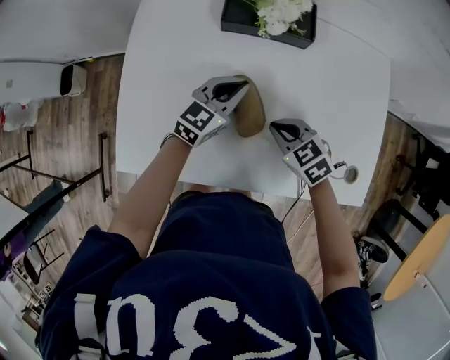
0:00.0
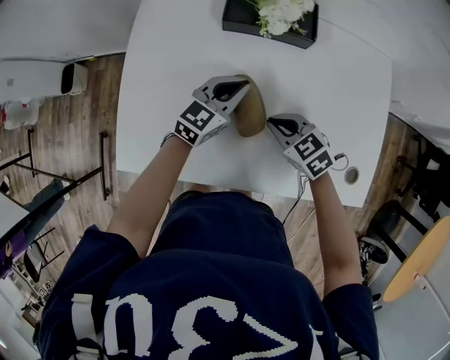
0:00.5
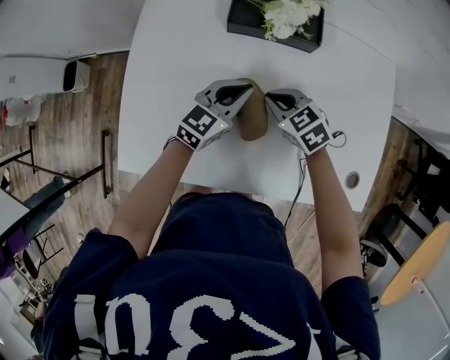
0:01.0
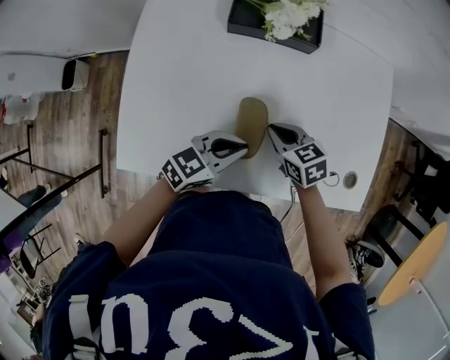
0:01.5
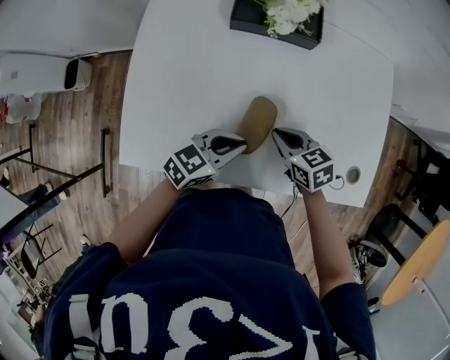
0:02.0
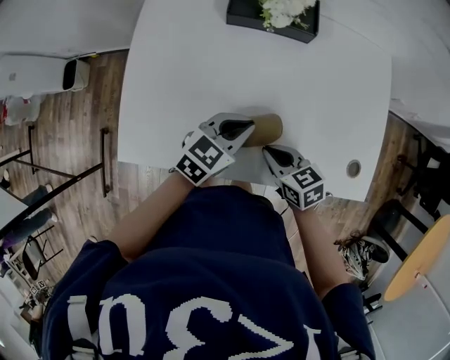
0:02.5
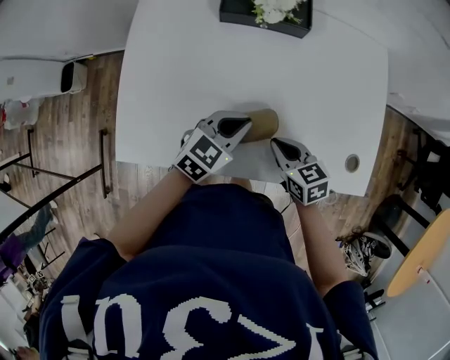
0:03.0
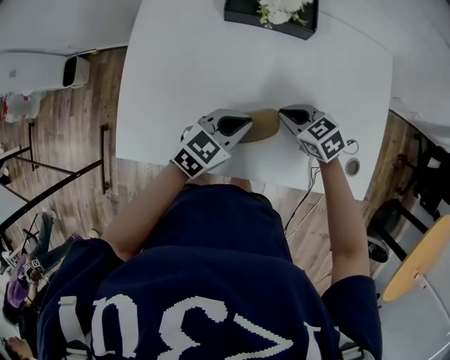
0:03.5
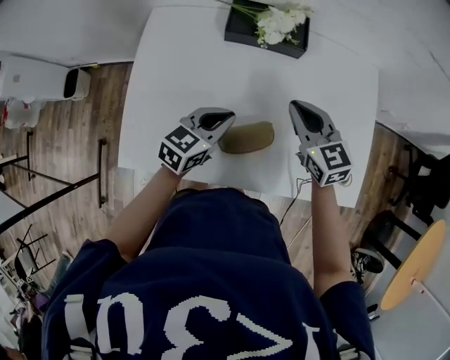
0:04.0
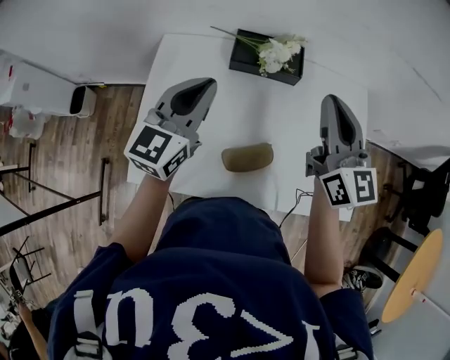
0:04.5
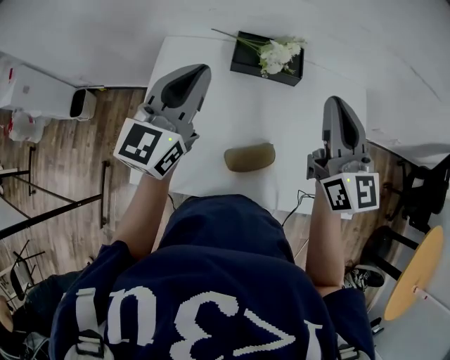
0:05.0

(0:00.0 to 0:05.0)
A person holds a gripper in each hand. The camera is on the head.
0:00.0 - 0:02.5: The grippers both shift backward by some 10 cm. The right gripper swivels about 30 degrees.
0:02.5 - 0:05.0: The right gripper heads upward and forward, covering approximately 35 cm, and angles its fingers upward, by approximately 50 degrees. Meanwhile the left gripper heads upward and to the left, covering roughly 30 cm, and tips its fingers upward by some 30 degrees.

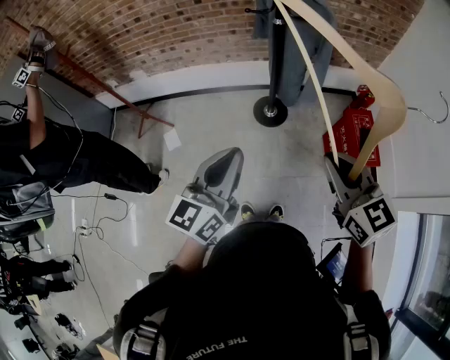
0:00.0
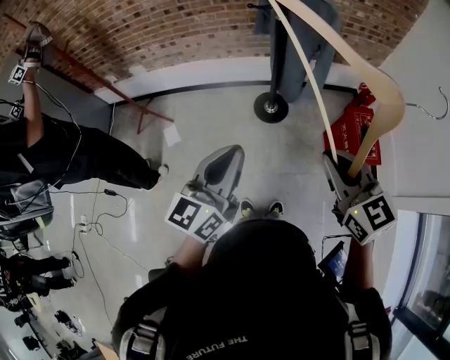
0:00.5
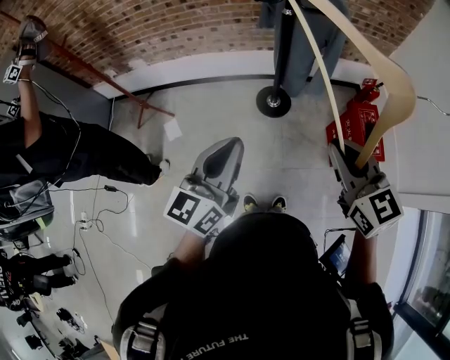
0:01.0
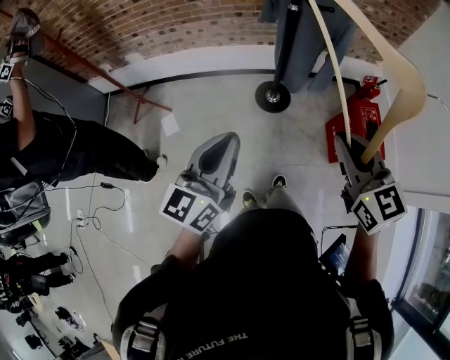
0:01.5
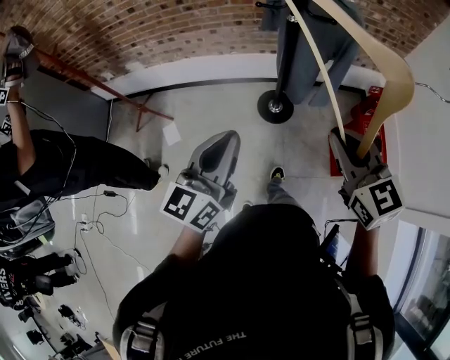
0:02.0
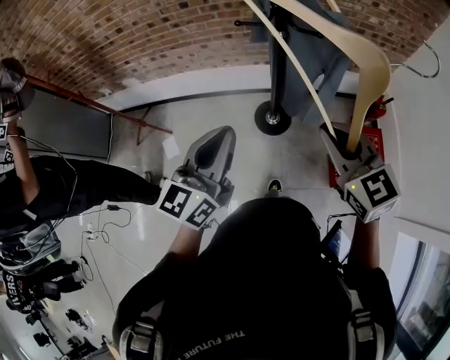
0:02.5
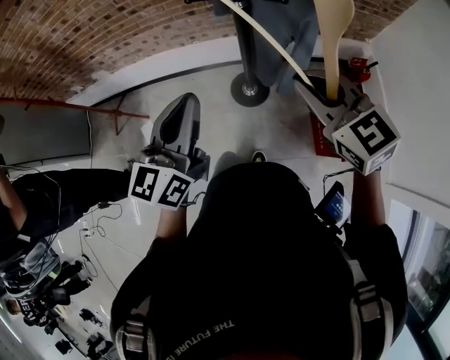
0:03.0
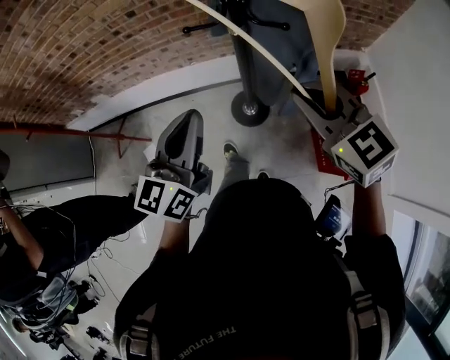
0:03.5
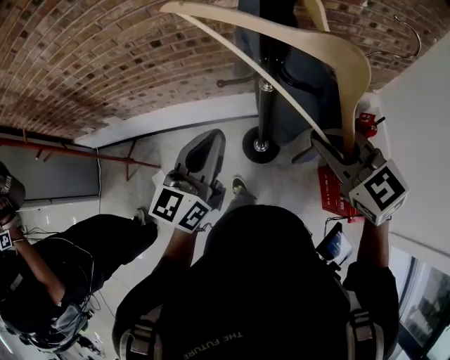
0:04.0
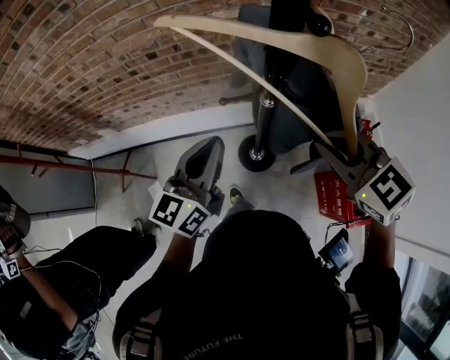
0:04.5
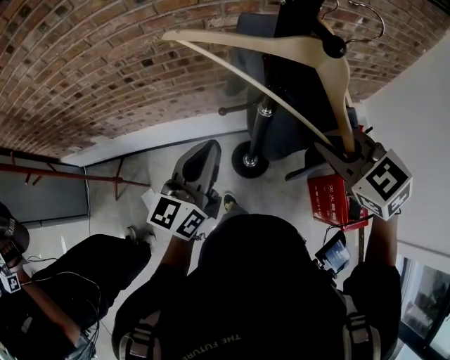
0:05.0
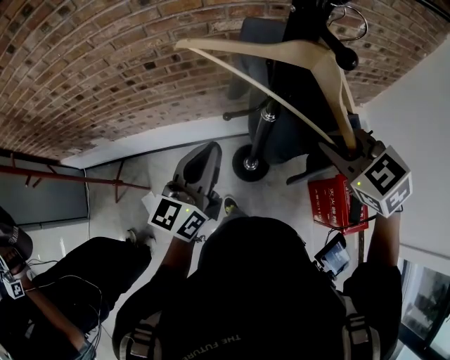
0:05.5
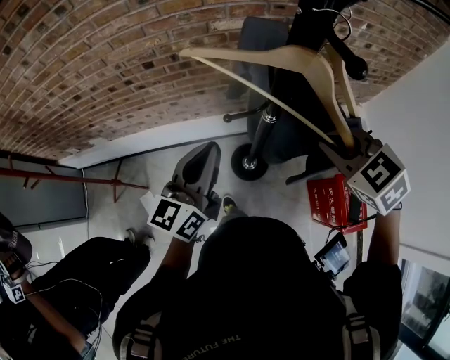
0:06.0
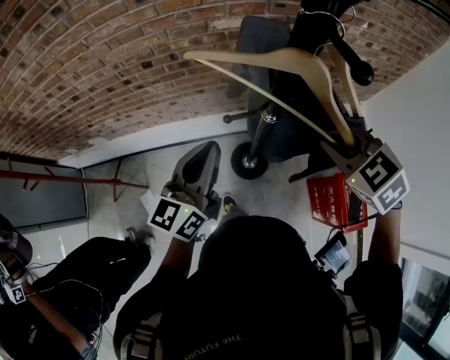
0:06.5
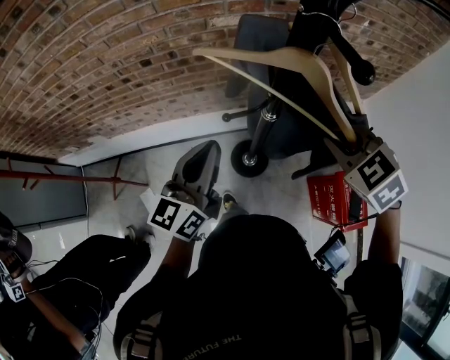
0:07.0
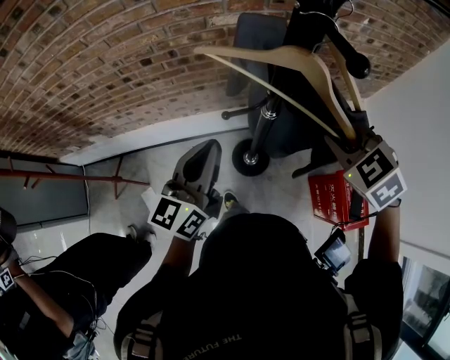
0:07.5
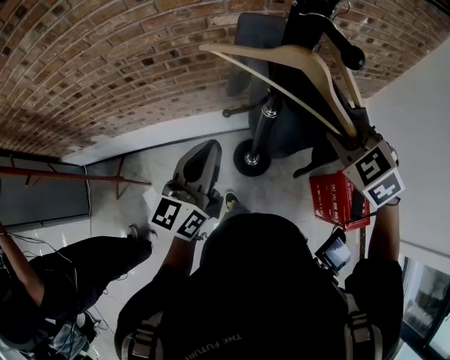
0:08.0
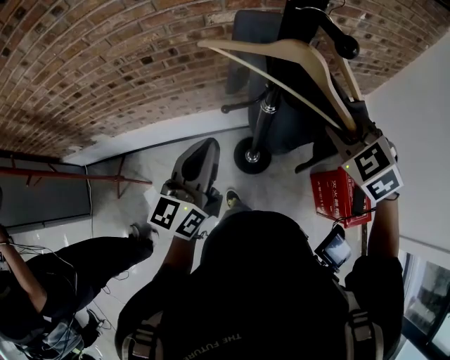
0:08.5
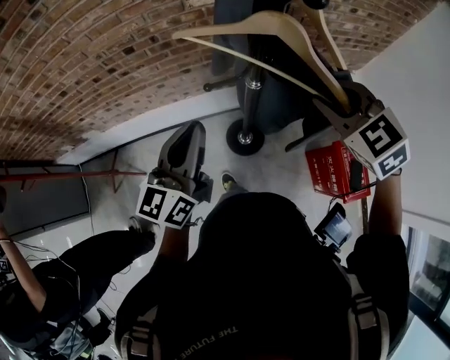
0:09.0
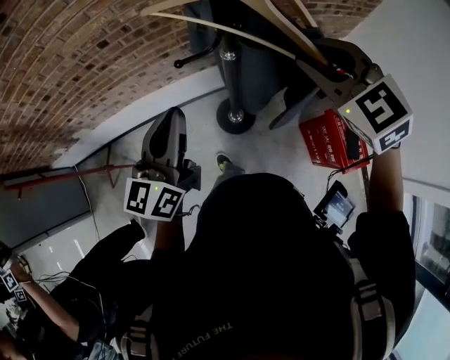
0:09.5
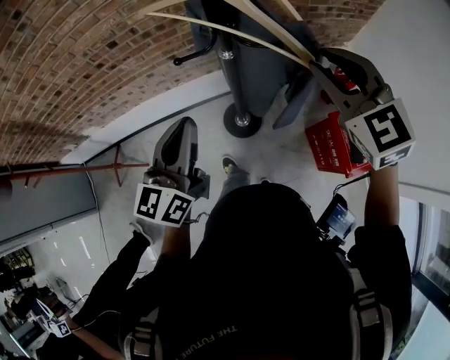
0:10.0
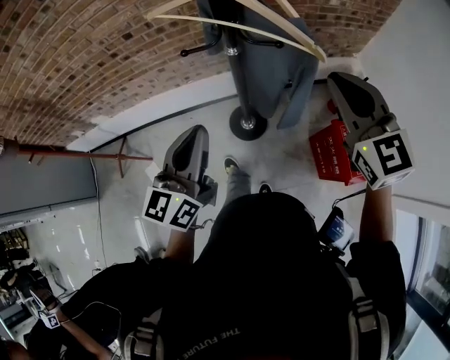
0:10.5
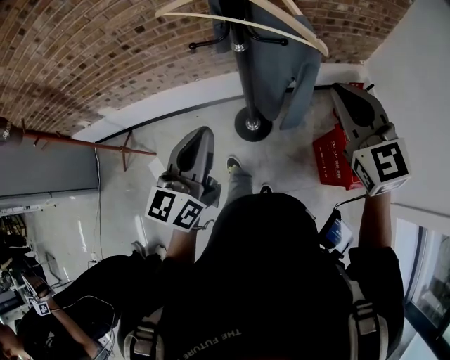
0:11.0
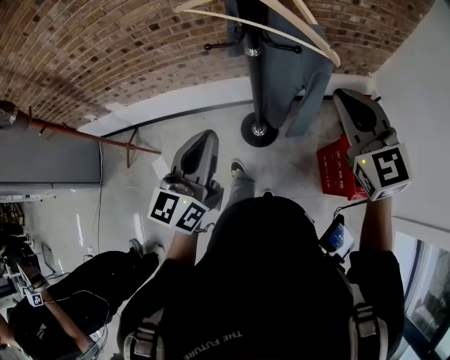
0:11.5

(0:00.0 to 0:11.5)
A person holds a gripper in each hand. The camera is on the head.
0:00.0 - 0:02.0: Both grippers move forward, approximately 15 cm.
0:02.0 - 0:04.0: Both grippers travel together forward, approximately 30 cm.
0:04.0 - 0:06.0: Both grippers travel together forward, approximately 10 cm. The right gripper changes its angle by approximately 20 degrees.
0:06.0 - 0:07.5: The grippers stay close to where they were, moving slightly.
0:07.5 - 0:09.5: The left gripper is displaced backward by about 5 cm. Meanwhile the right gripper heads upward, covering approximately 5 cm, and turns by about 20 degrees.
0:09.5 - 0:11.5: The right gripper moves backward and to the right, some 15 cm, turns by approximately 20 degrees, and closes its fingers, while the left gripper heads backward, covering roughly 15 cm.

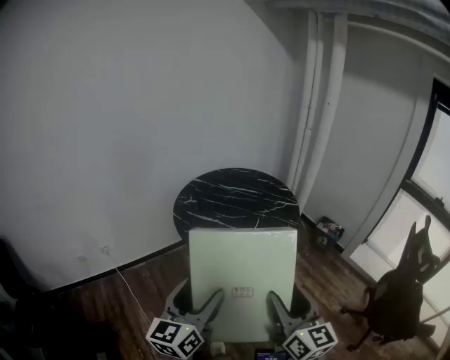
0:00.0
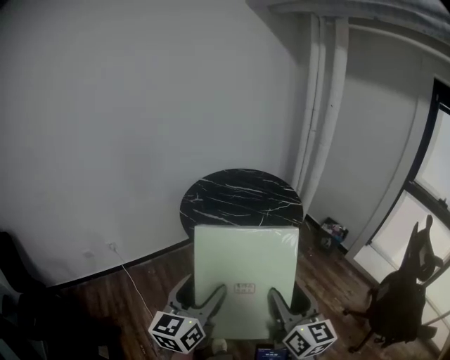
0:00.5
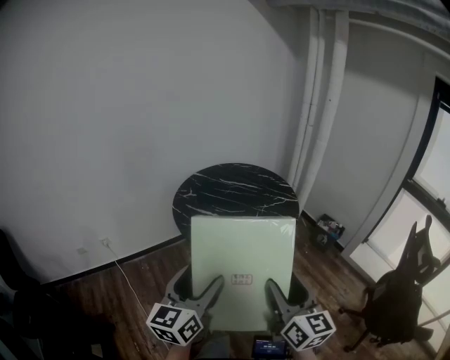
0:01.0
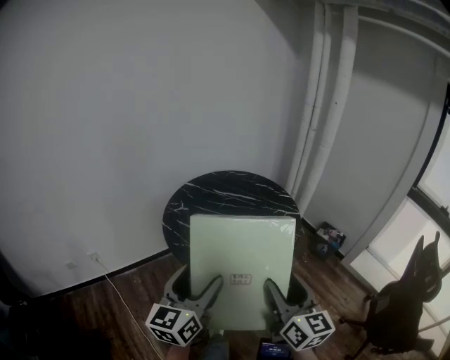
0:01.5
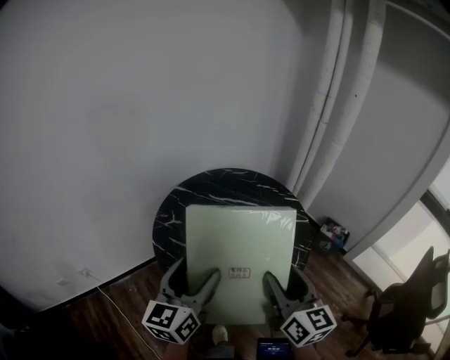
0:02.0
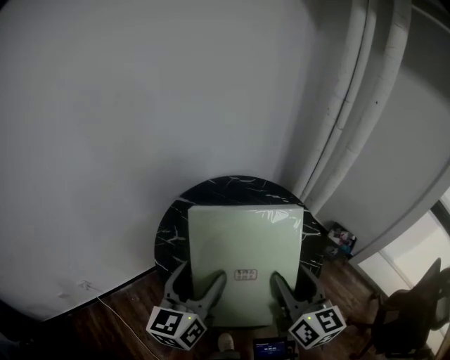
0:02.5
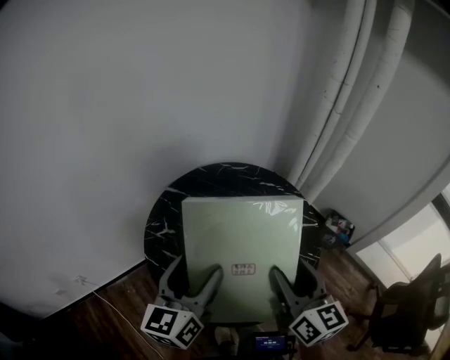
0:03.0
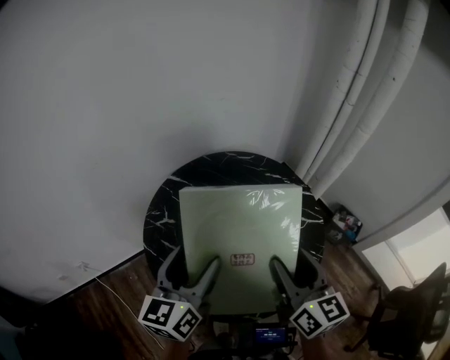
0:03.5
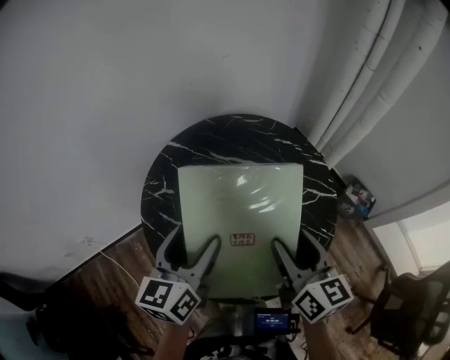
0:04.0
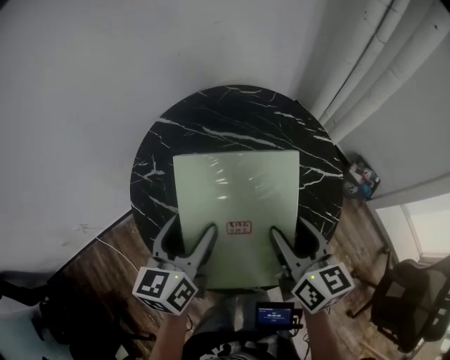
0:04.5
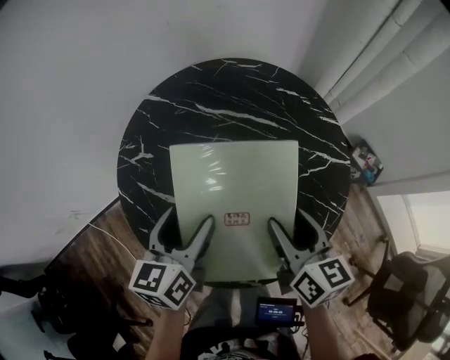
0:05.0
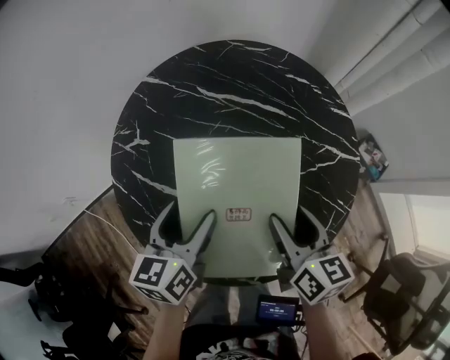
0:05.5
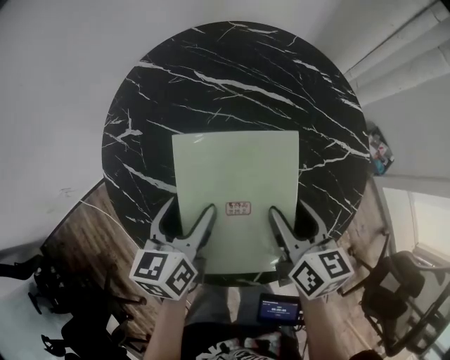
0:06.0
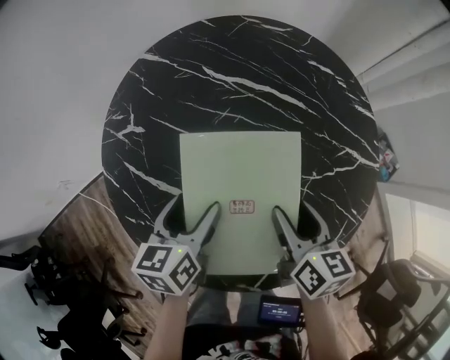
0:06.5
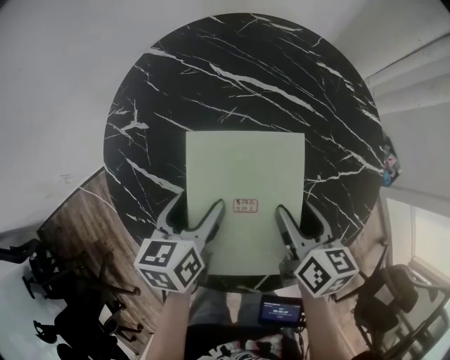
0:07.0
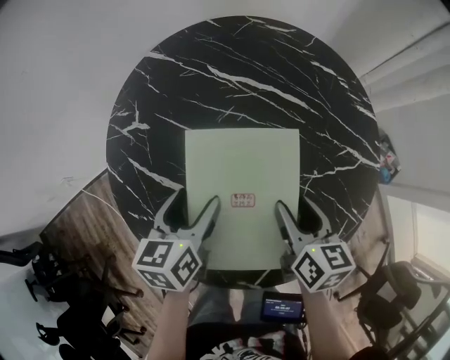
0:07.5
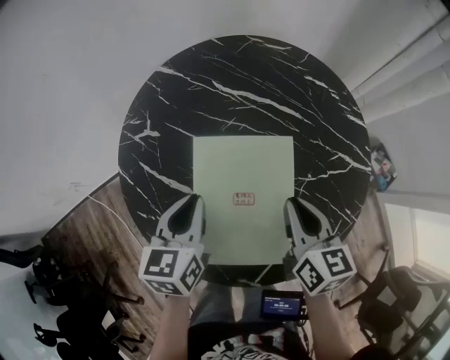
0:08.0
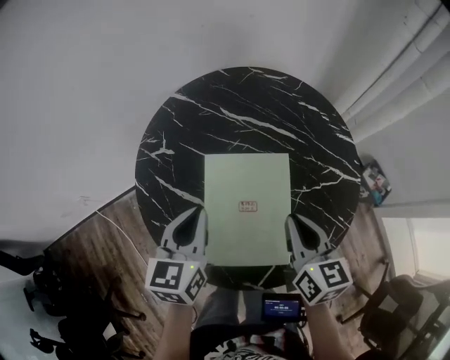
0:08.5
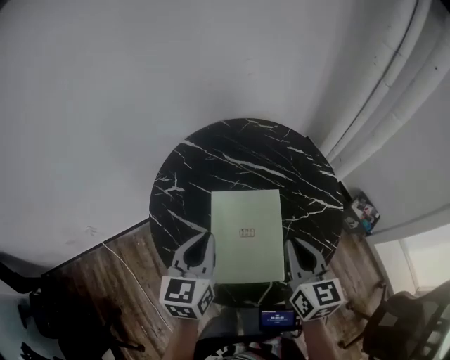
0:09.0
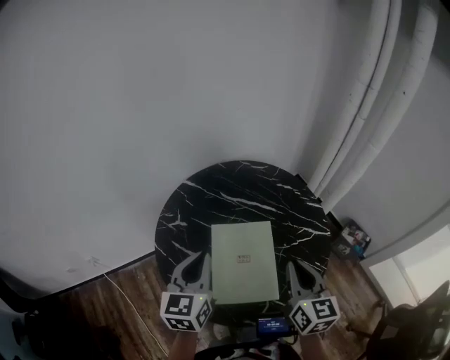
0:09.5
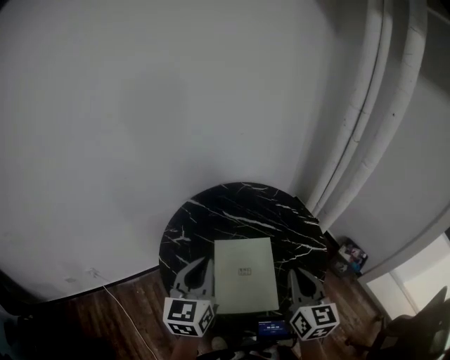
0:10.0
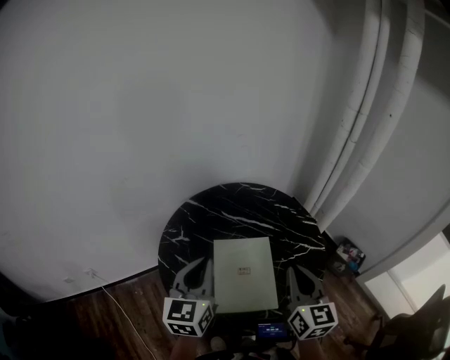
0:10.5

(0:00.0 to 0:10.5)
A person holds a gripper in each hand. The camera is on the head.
0:00.0 - 0:02.0: Both grippers travel together forward, some 35 cm.
0:02.0 - 0:04.0: The grippers both shift forward and downward by approximately 20 cm.
0:04.0 - 0:06.5: The grippers both shift downward by some 25 cm. The left gripper changes its angle by about 30 degrees. The right gripper changes its angle by some 20 degrees.
0:06.5 - 0:08.5: The grippers both shift upward by approximately 10 cm. The left gripper rotates some 20 degrees, and closes up. The right gripper closes its fingers.
0:08.5 - 0:10.5: The two grippers go about 20 cm upward. The right gripper swivels approximately 20 degrees.
